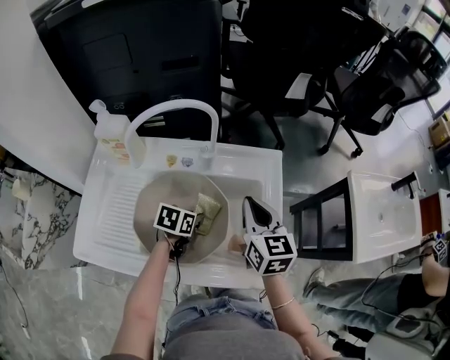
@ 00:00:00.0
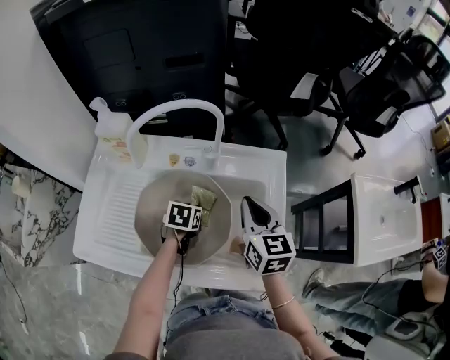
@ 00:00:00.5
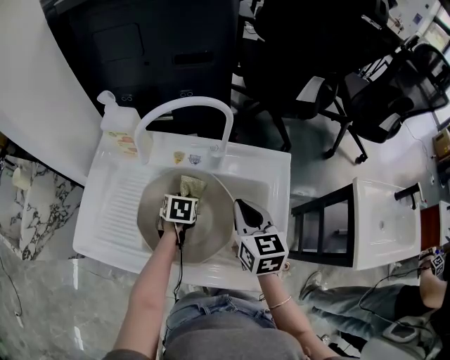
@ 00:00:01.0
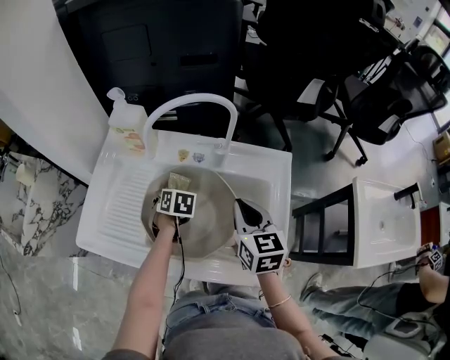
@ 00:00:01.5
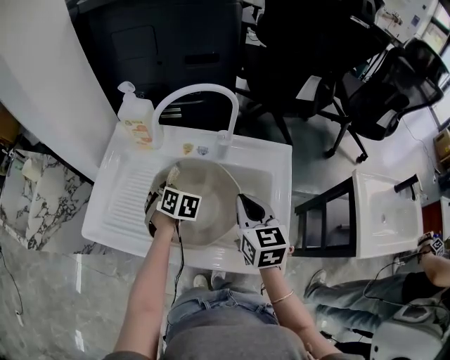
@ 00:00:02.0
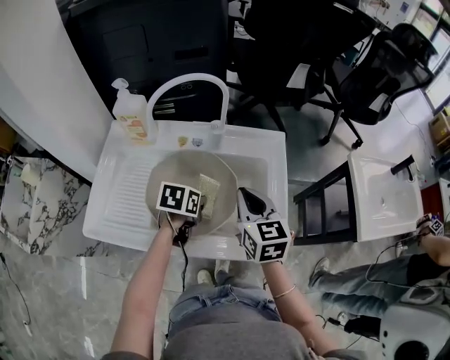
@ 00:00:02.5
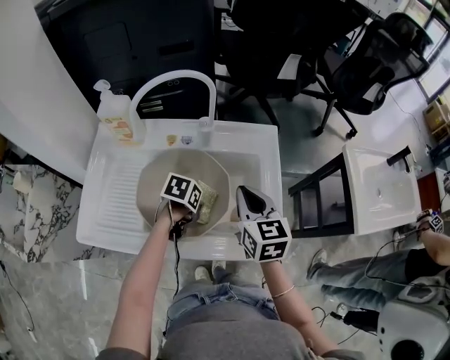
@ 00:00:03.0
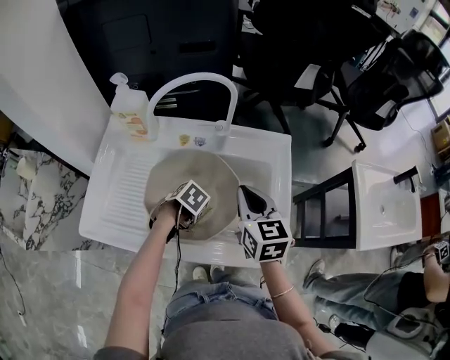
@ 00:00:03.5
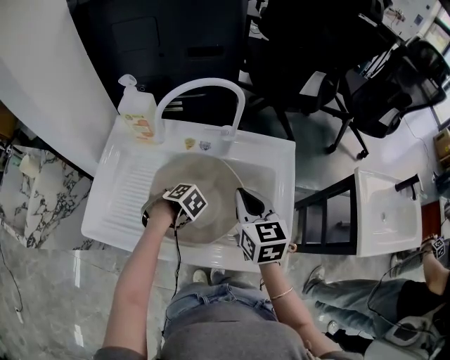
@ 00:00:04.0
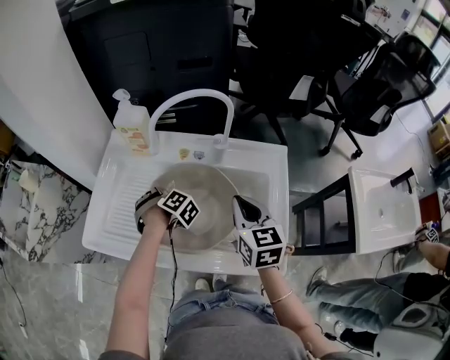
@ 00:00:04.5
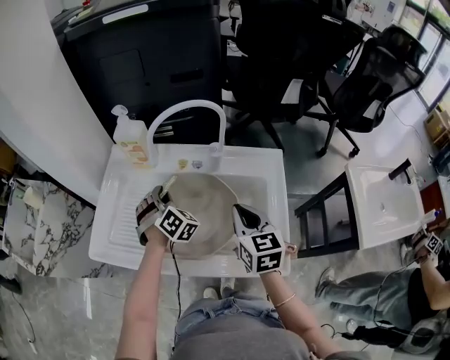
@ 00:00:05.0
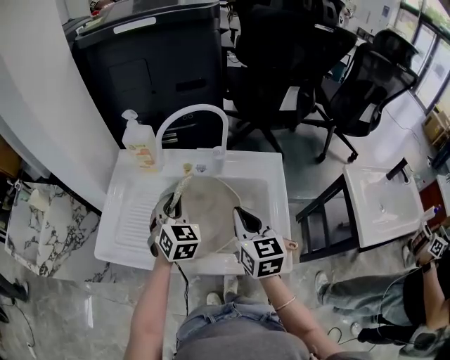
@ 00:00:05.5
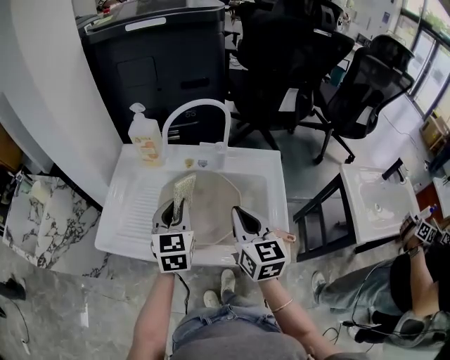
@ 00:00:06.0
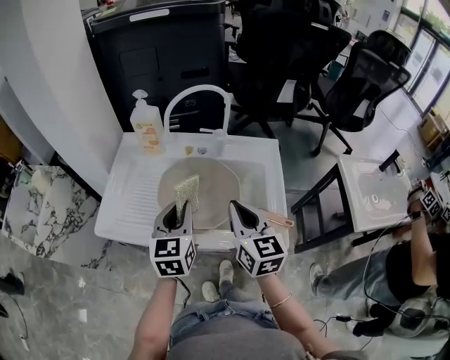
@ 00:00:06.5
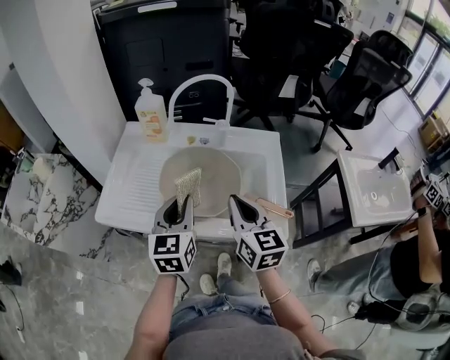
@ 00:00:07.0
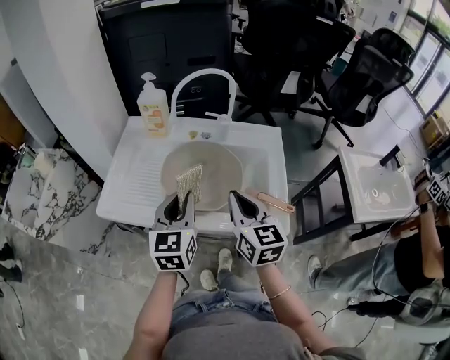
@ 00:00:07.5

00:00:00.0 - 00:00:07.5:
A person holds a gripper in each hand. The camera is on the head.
00:00:00.0 - 00:00:02.0: The right gripper changes place by roughly 5 cm; the left gripper moves about 15 cm, and swivels about 60 degrees.
00:00:02.0 - 00:00:04.0: The left gripper points its fingers approximately 30 degrees further downward.
00:00:04.0 - 00:00:05.5: The left gripper is displaced upward by roughly 20 cm, and angles its fingers upward, by about 60 degrees. Meanwhile the right gripper moves approximately 5 cm.
00:00:05.5 - 00:00:07.5: The left gripper travels backward by about 15 cm, and changes its angle by about 40 degrees. Meanwhile the right gripper moves backward, roughly 10 cm.

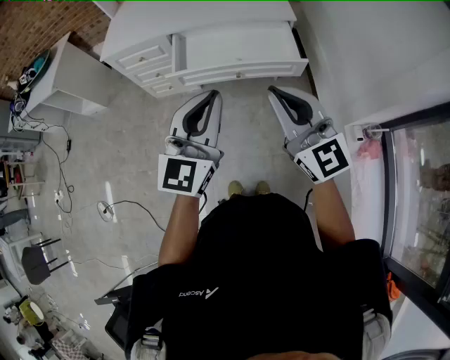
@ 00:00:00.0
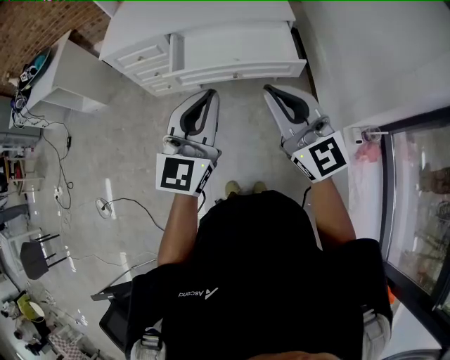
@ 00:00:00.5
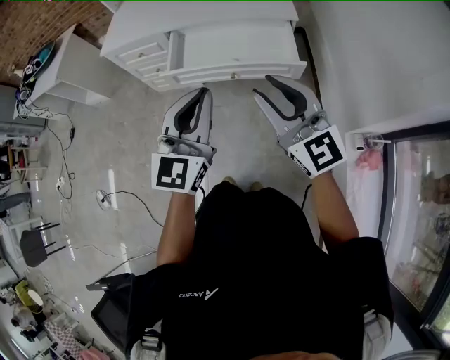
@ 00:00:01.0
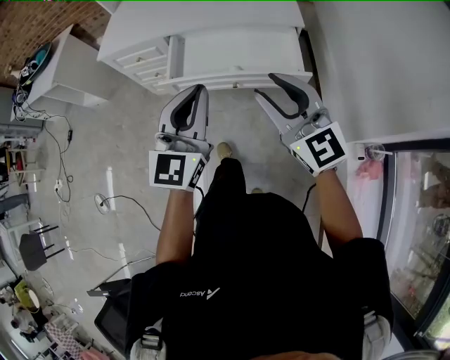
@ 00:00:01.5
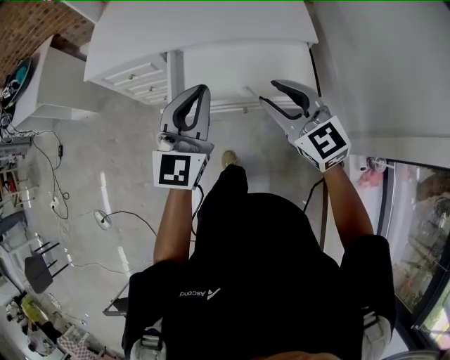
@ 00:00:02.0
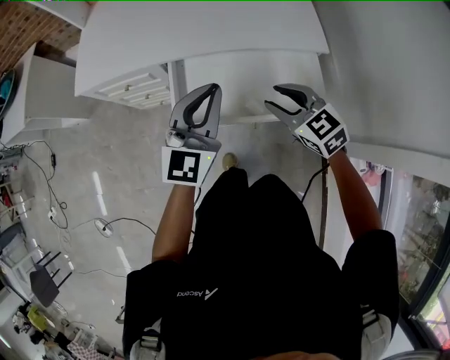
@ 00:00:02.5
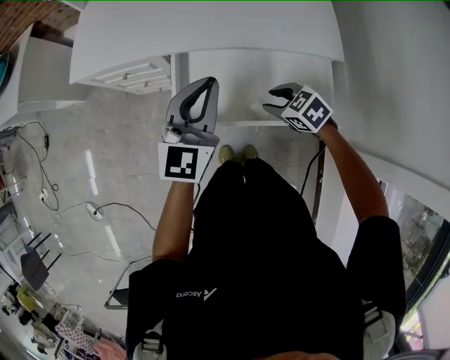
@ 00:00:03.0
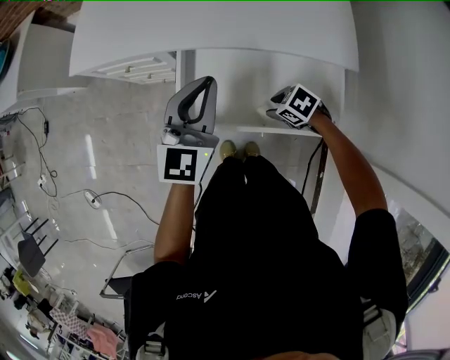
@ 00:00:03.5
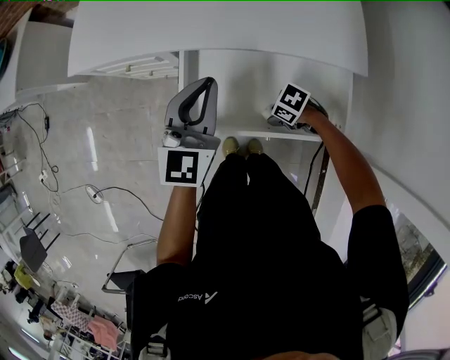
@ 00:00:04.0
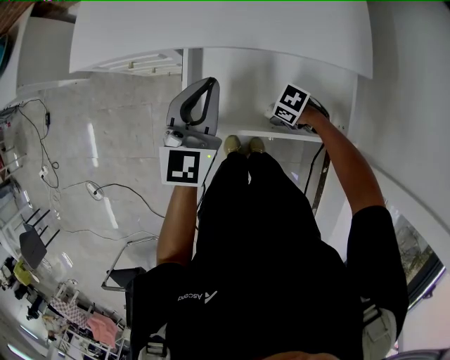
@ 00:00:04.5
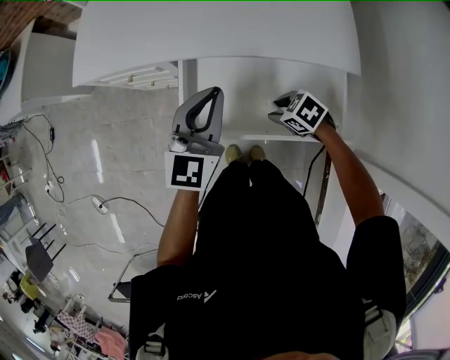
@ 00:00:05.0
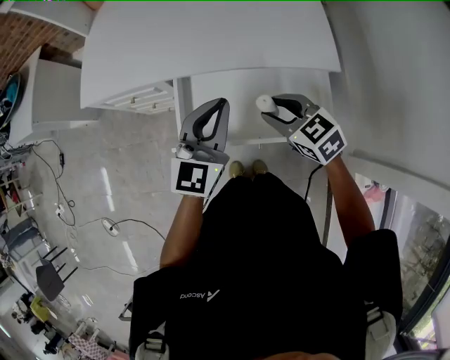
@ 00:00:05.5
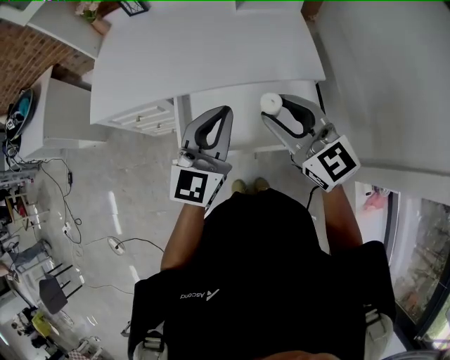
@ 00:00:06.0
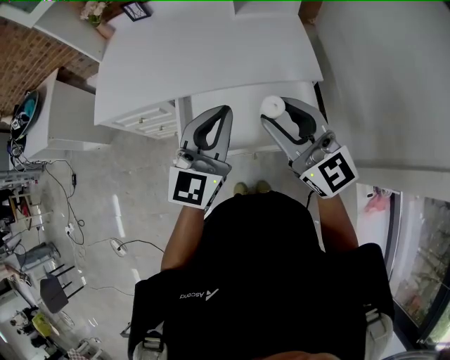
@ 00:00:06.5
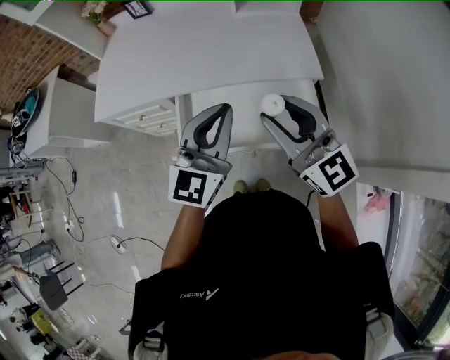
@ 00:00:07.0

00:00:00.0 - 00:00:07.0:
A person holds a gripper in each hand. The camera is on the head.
00:00:00.0 - 00:00:02.0: The left gripper travels forward by roughly 25 cm. The right gripper moves forward and downward, some 30 cm, changes its angle by roughly 20 degrees, and opens.
00:00:02.0 - 00:00:03.5: The left gripper changes place by some 20 cm. Meanwhile the right gripper is displaced downward by roughly 30 cm, and angles its fingers downward, by roughly 50 degrees.
00:00:03.5 - 00:00:05.0: The grippers make only small movements.
00:00:05.0 - 00:00:07.0: The left gripper shifts about 15 cm upward. Meanwhile the right gripper moves upward, roughly 40 cm, and points its fingers about 70 degrees further upward.

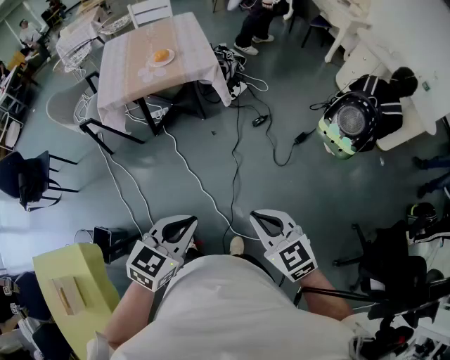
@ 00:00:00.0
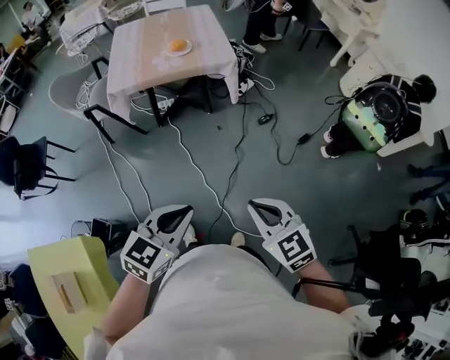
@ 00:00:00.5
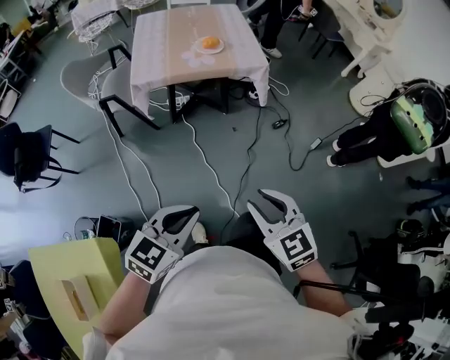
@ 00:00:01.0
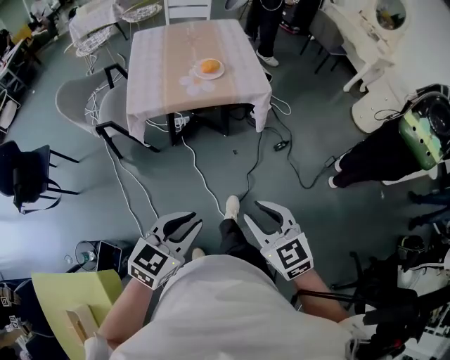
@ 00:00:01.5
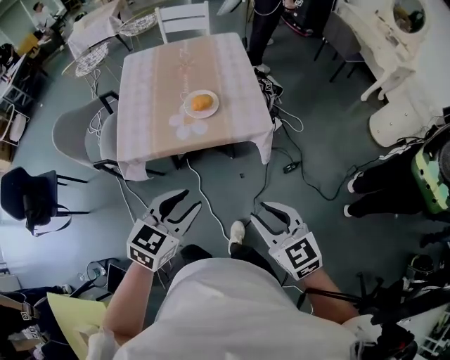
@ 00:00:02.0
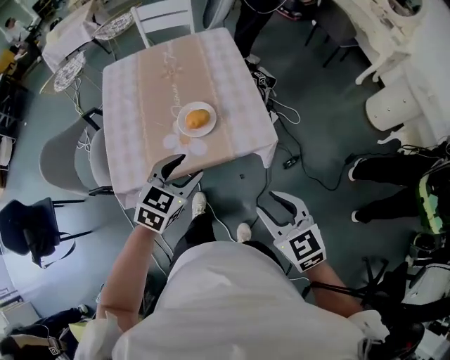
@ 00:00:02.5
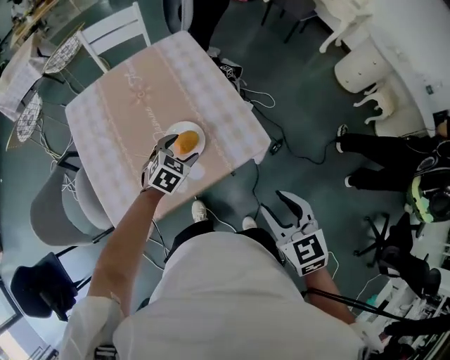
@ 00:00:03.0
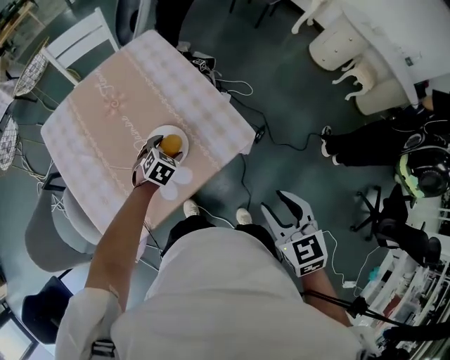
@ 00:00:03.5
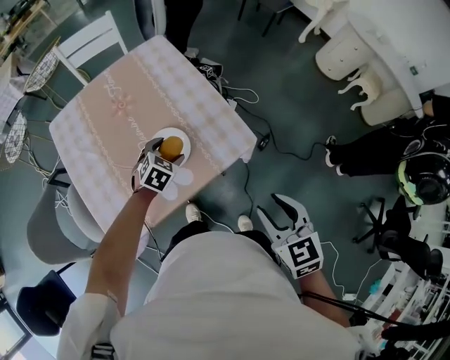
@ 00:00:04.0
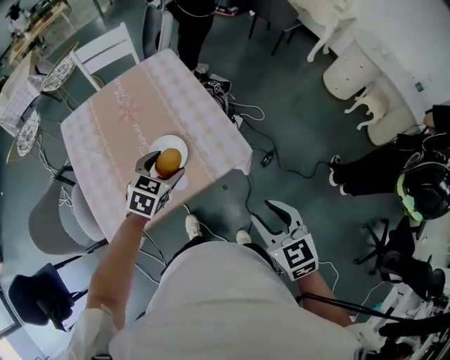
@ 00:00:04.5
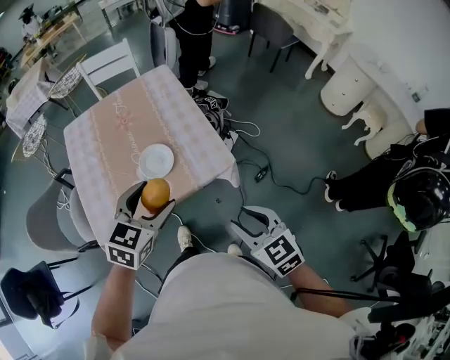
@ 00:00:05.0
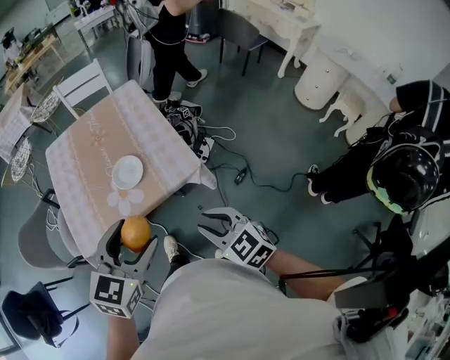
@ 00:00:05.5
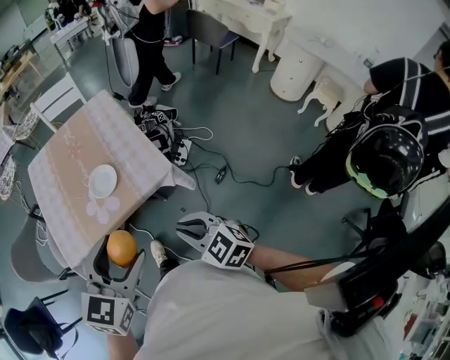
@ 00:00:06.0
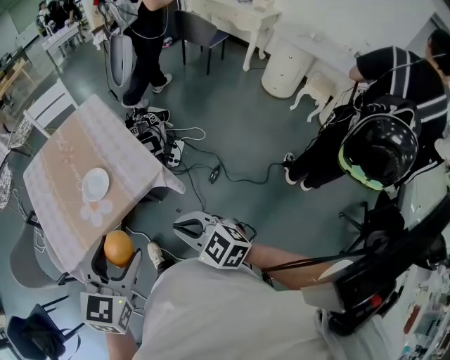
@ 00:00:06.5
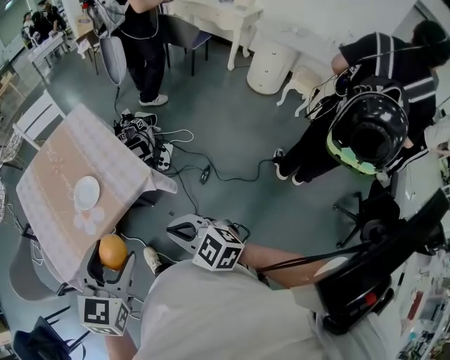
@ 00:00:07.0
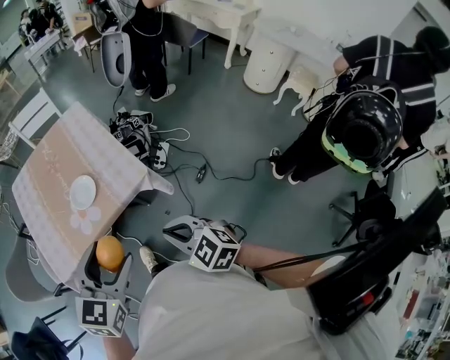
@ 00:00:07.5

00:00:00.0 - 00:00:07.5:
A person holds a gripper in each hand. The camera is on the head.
00:00:00.0 - 00:00:02.0: The two grippers travel together, forward and to the left, roughly 50 cm. The right gripper opens. Meanwhile the left gripper opens.
00:00:02.0 - 00:00:04.0: The right gripper changes place by roughly 20 cm, and changes its angle by about 40 degrees, while the left gripper shifts by roughly 50 cm, changes its angle by roughly 40 degrees, and opens up.
00:00:04.0 - 00:00:05.5: The left gripper moves upward and backward, approximately 40 cm, and turns by some 30 degrees. Meanwhile the right gripper goes roughly 10 cm backward and to the right, and swivels about 30 degrees.
00:00:05.5 - 00:00:07.5: The right gripper moves roughly 5 cm, and closes up; the left gripper shifts approximately 5 cm to the right.

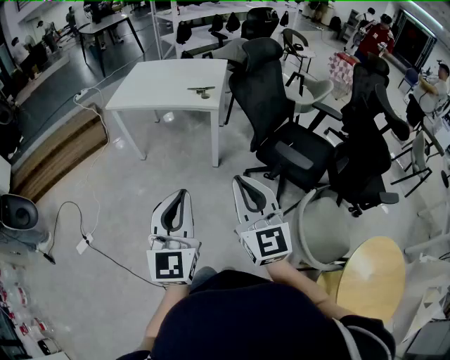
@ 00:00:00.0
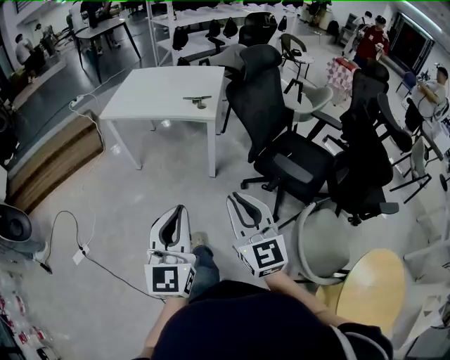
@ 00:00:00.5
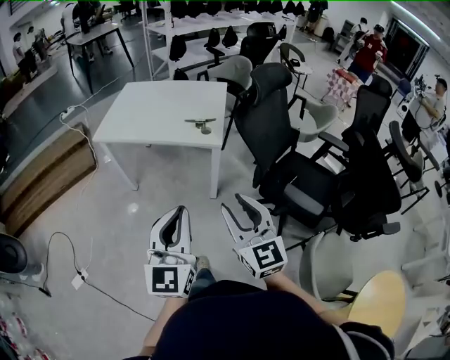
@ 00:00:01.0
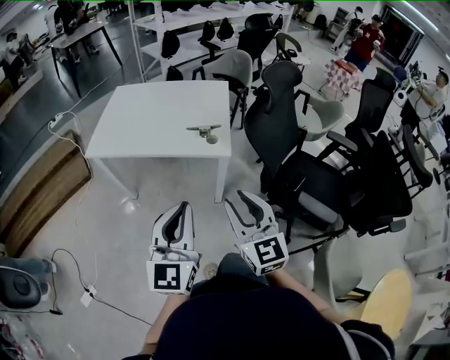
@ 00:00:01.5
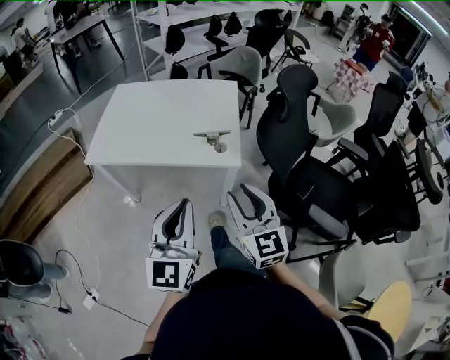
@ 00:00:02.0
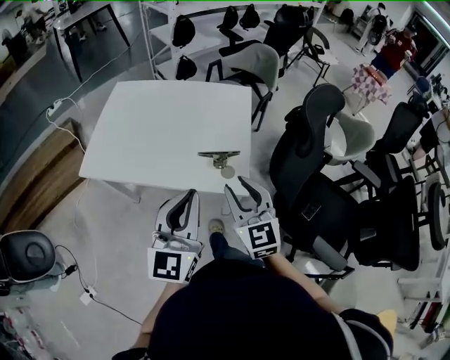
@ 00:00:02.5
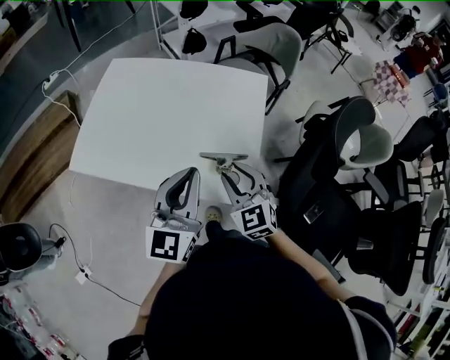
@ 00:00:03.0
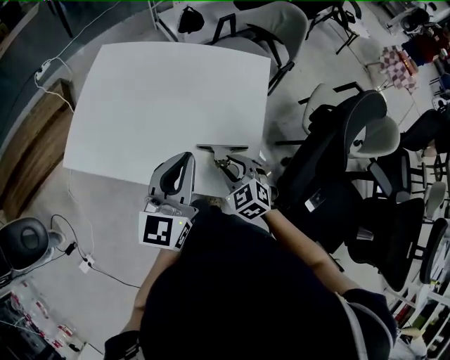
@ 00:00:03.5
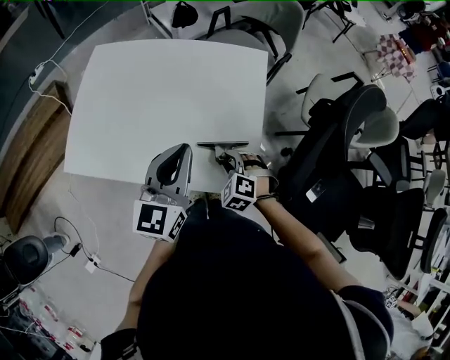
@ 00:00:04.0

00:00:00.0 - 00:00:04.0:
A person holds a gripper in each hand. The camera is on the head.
00:00:00.0 - 00:00:02.0: The pair of grippers is taken forward, some 50 cm. The right gripper opens up.
00:00:02.0 - 00:00:04.0: The right gripper shifts approximately 40 cm forward and downward, and angles its fingers downward, by about 50 degrees. The left gripper moves forward, some 40 cm.
